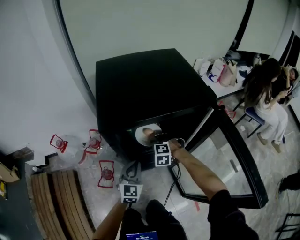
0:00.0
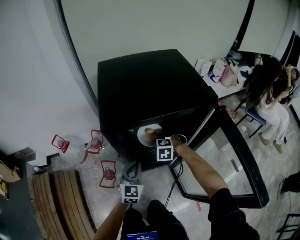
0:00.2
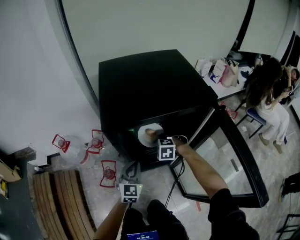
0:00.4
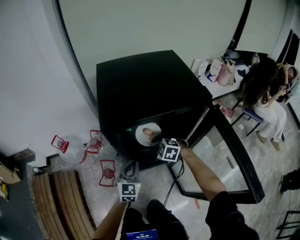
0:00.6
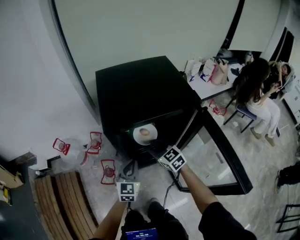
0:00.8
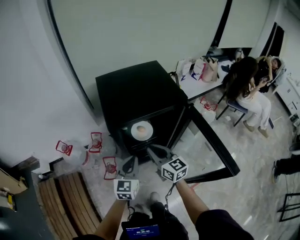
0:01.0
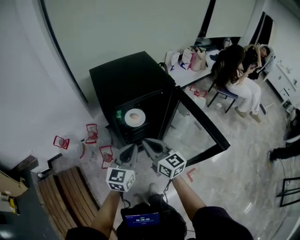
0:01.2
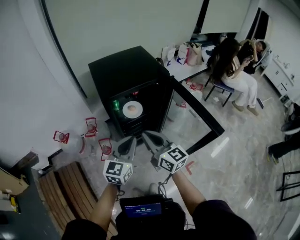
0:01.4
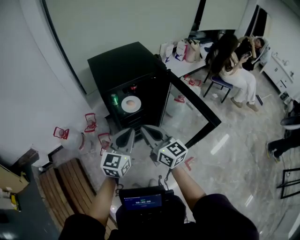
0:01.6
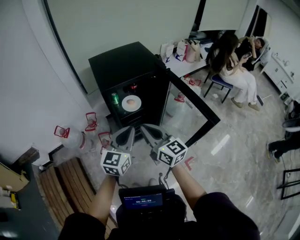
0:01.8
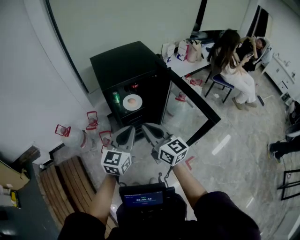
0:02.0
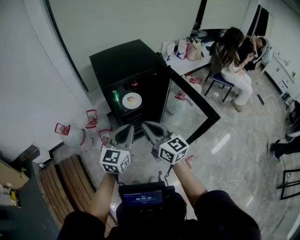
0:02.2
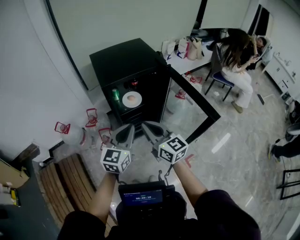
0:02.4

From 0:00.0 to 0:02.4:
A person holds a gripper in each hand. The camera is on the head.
From 0:00.0 to 0:01.2: Both grippers travel together upward and backward, approximately 35 cm. The right gripper points its fingers approximately 60 degrees further upward. The left gripper swivels approximately 20 degrees.
From 0:01.2 to 0:02.4: Both grippers move backward, about 10 cm.

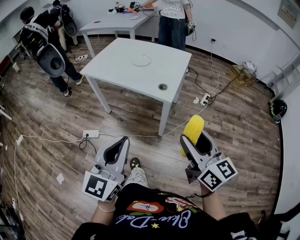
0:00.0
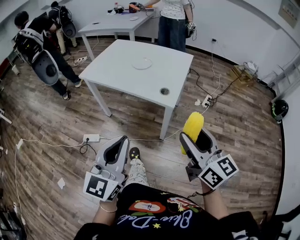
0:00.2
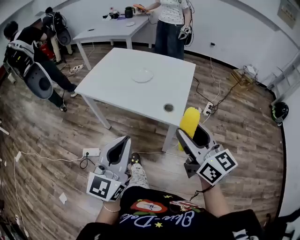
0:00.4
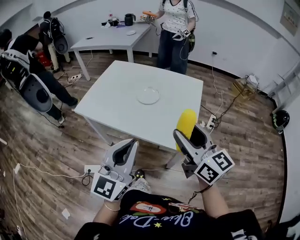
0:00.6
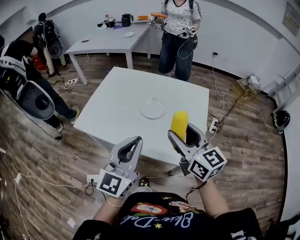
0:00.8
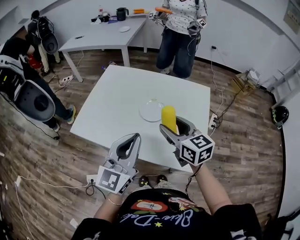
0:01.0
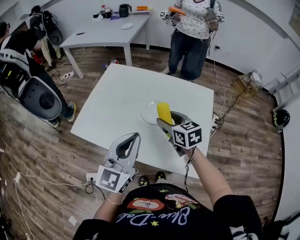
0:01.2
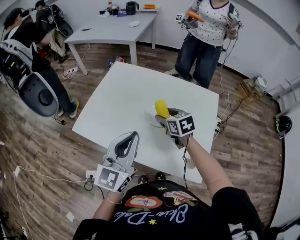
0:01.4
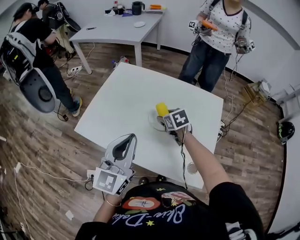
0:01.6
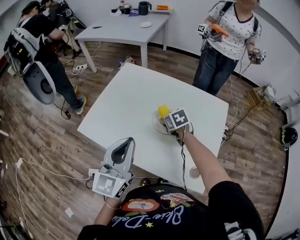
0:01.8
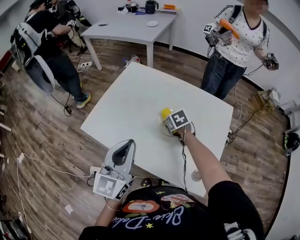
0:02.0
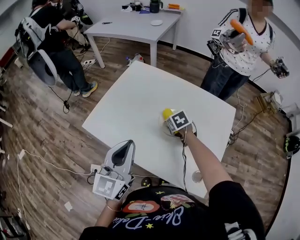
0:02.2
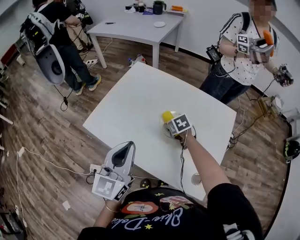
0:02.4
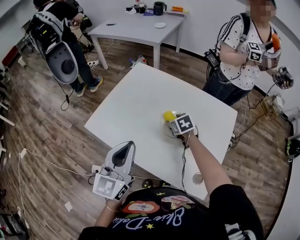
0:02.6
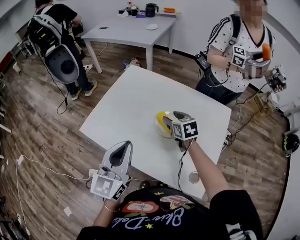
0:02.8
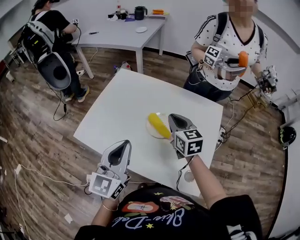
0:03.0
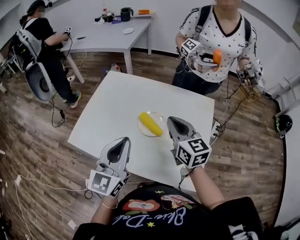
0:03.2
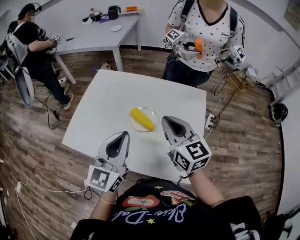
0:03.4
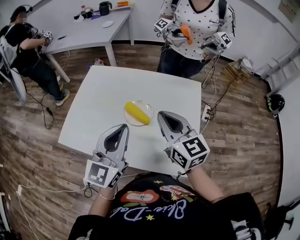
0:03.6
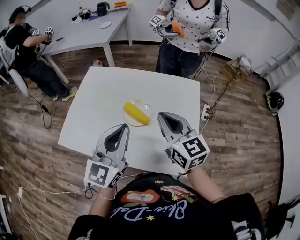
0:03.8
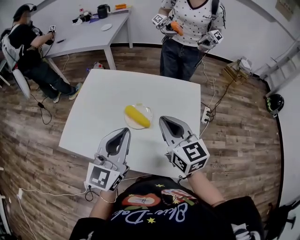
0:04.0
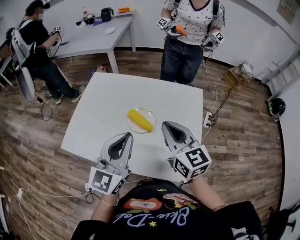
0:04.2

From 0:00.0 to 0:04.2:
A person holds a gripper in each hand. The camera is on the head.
From 0:00.0 to 0:01.4: The pair of grippers is taken forward, about 60 cm. The right gripper tilts its fingers roughly 40 degrees downward.
From 0:01.4 to 0:02.8: The right gripper is displaced forward by approximately 5 cm, and goes downward and returns, about 10 cm each way, while the left gripper heads to the left, covering roughly 5 cm.
From 0:02.8 to 0:04.2: The left gripper goes about 10 cm to the right. The right gripper shifts some 25 cm upward, backward and to the right, swivels some 30 degrees, and closes.

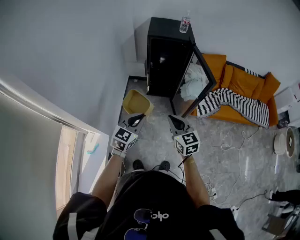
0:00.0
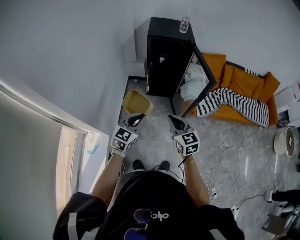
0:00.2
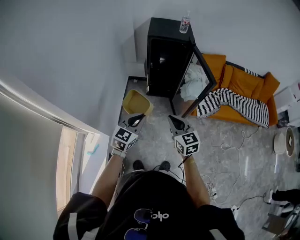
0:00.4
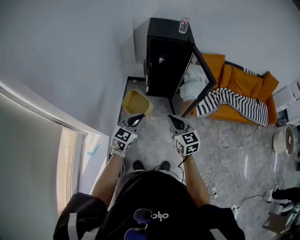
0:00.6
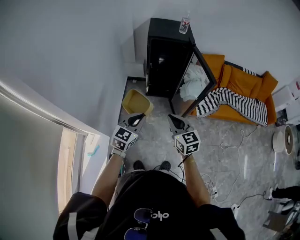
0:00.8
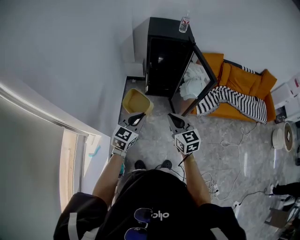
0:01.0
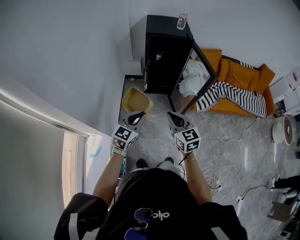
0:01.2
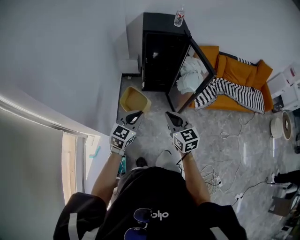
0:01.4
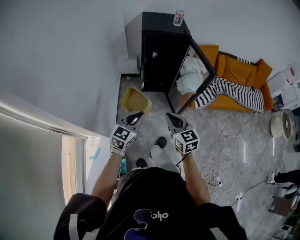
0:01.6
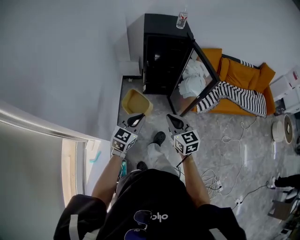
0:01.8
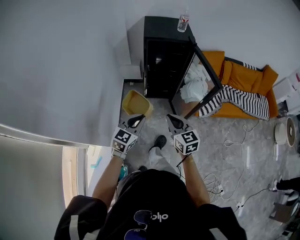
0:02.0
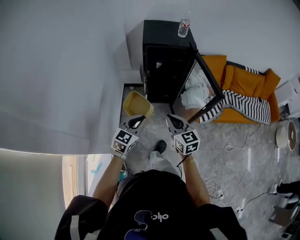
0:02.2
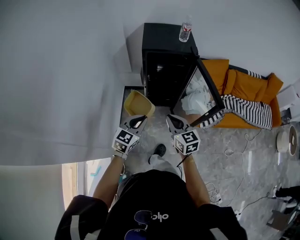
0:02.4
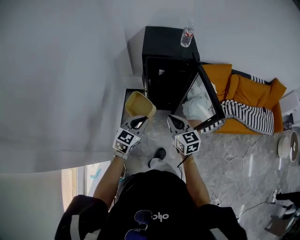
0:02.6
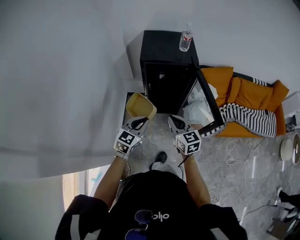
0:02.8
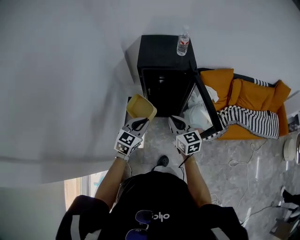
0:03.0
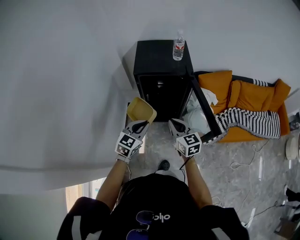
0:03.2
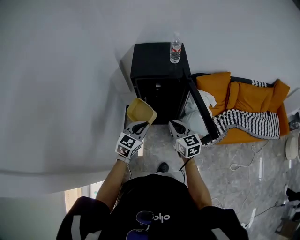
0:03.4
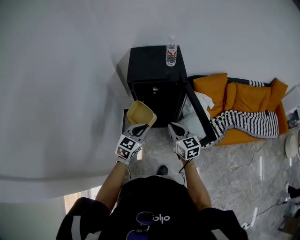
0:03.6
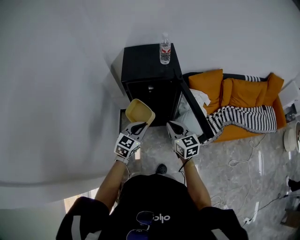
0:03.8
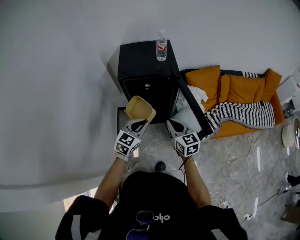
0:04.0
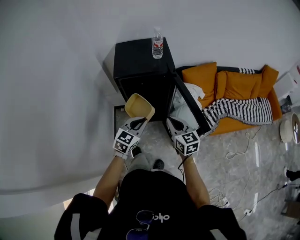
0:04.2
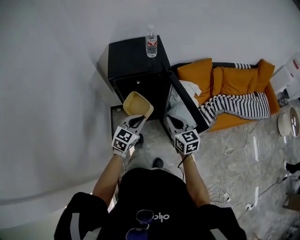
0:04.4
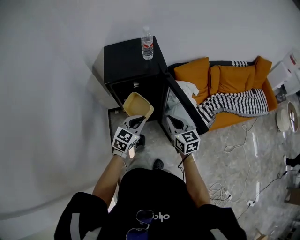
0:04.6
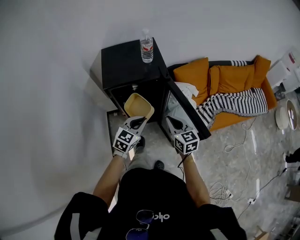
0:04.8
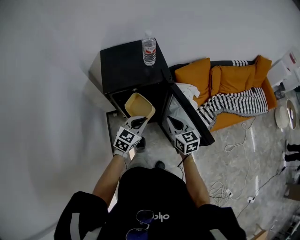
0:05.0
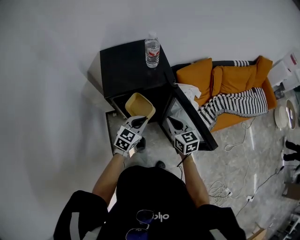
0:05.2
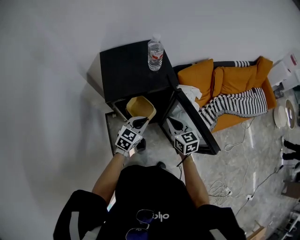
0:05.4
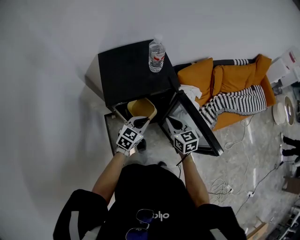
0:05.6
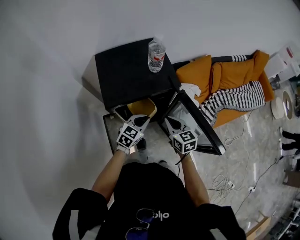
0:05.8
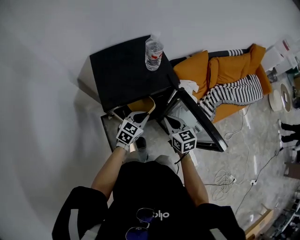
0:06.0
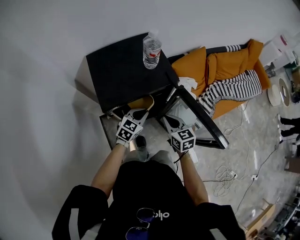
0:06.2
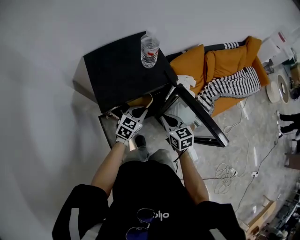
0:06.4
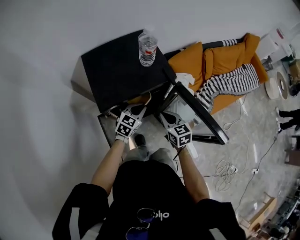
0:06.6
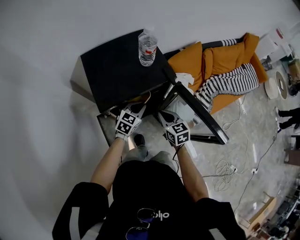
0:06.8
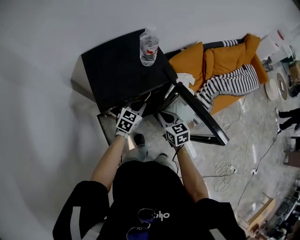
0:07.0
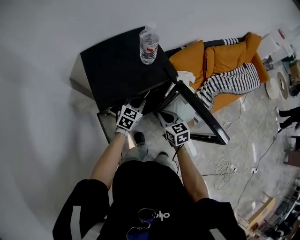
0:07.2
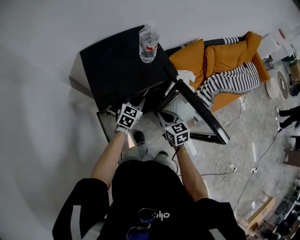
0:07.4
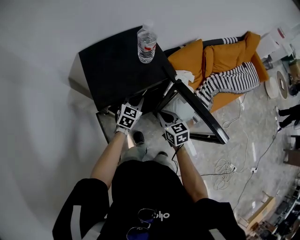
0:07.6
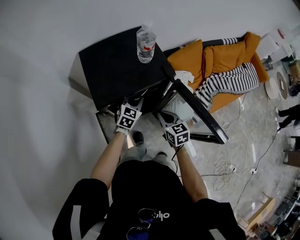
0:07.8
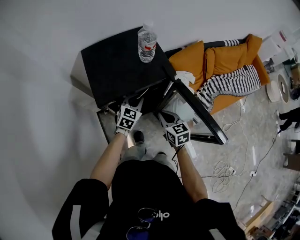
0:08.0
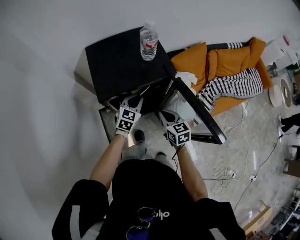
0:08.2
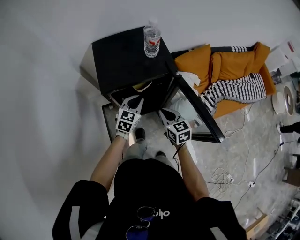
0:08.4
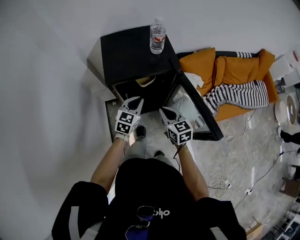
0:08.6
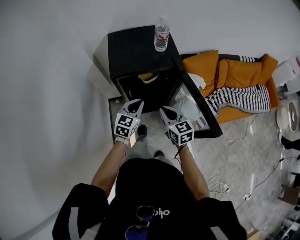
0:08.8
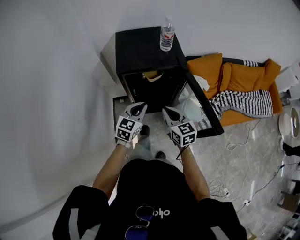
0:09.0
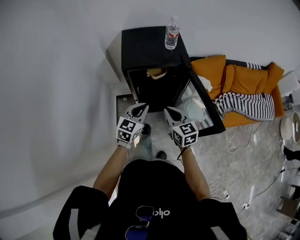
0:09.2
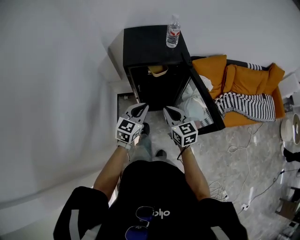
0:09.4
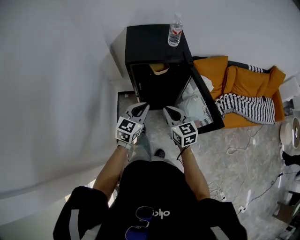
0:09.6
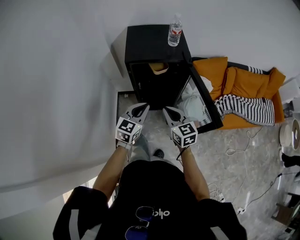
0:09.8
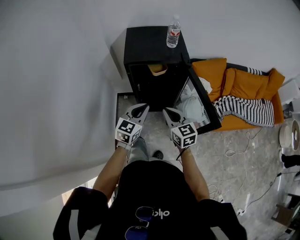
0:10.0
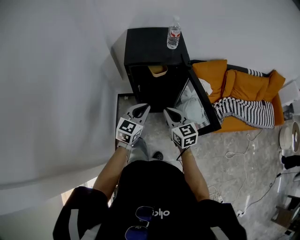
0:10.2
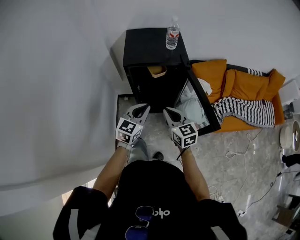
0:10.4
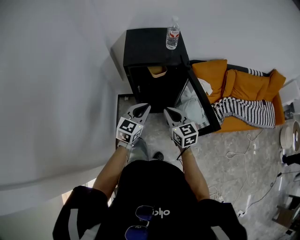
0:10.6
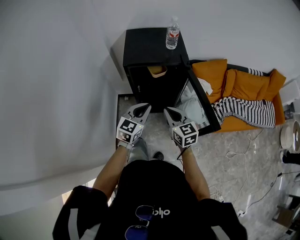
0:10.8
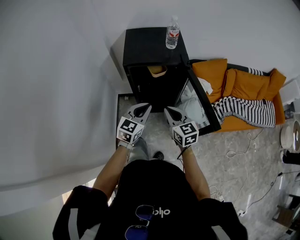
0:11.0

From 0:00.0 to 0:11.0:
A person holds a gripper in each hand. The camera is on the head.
From 0:00.0 to 0:01.6: The two grippers go about 5 cm to the left.
From 0:01.6 to 0:03.2: Both grippers move forward, some 35 cm.
From 0:03.2 to 0:04.8: The two grippers go roughly 15 cm forward and to the right.
From 0:04.8 to 0:06.2: The right gripper is displaced forward, to the left and downward by roughly 15 cm, while the left gripper is displaced forward, downward and to the left by roughly 20 cm.
From 0:06.2 to 0:07.8: The left gripper is displaced forward by approximately 5 cm.
From 0:07.8 to 0:09.4: Both grippers move backward and upward, about 25 cm. The left gripper turns by approximately 20 degrees, while the right gripper swivels about 20 degrees.
From 0:09.4 to 0:11.0: The grippers make only small movements.

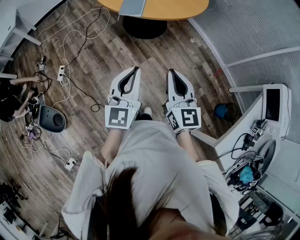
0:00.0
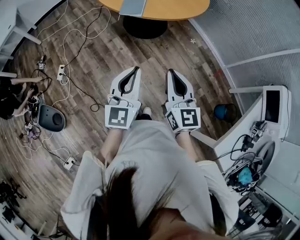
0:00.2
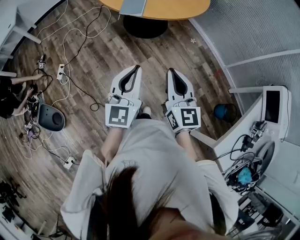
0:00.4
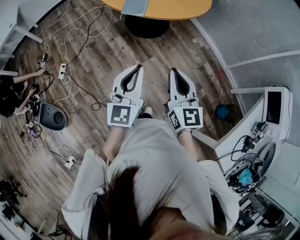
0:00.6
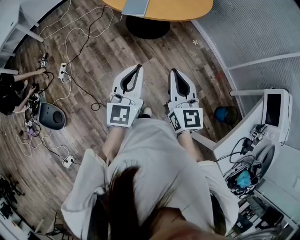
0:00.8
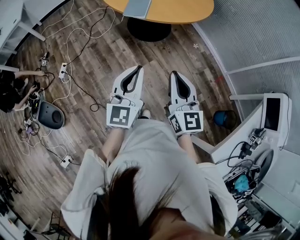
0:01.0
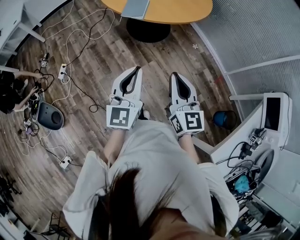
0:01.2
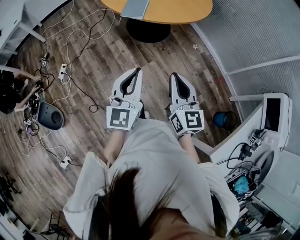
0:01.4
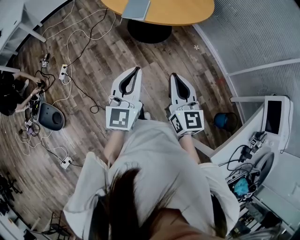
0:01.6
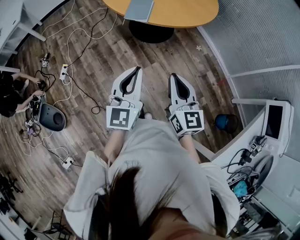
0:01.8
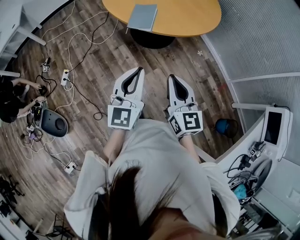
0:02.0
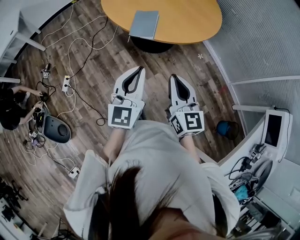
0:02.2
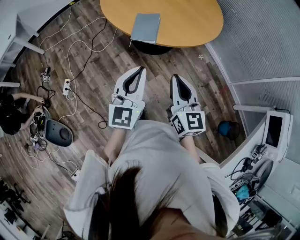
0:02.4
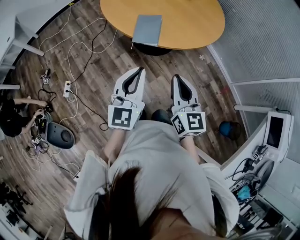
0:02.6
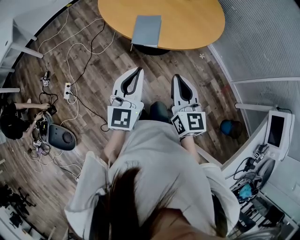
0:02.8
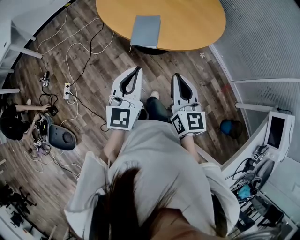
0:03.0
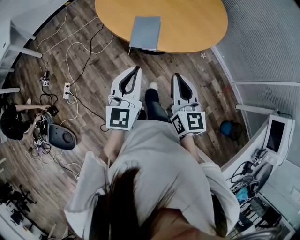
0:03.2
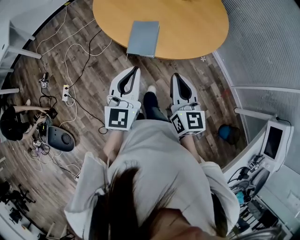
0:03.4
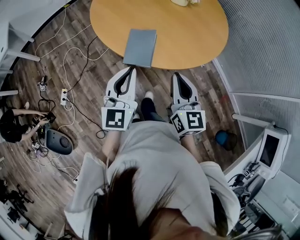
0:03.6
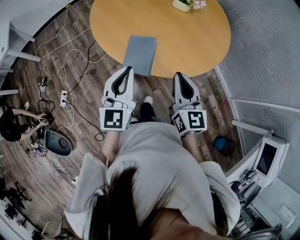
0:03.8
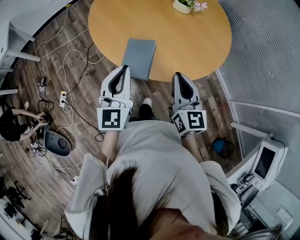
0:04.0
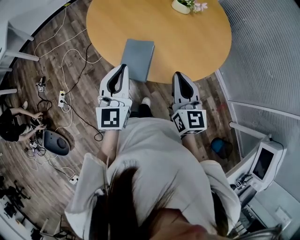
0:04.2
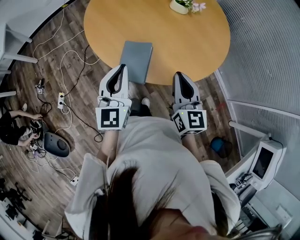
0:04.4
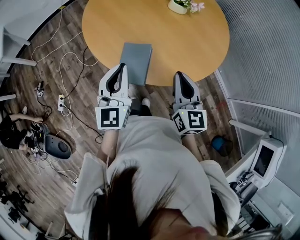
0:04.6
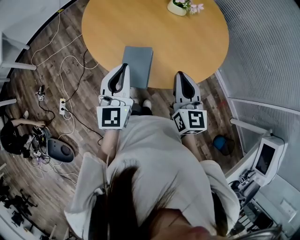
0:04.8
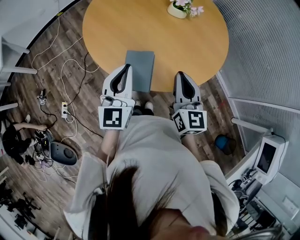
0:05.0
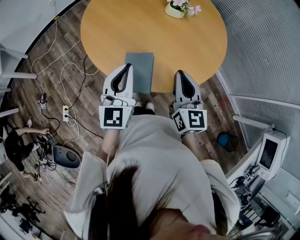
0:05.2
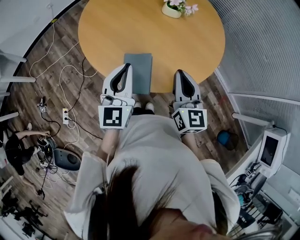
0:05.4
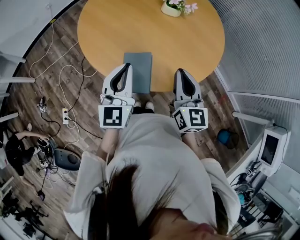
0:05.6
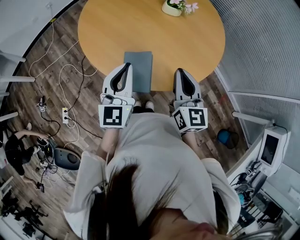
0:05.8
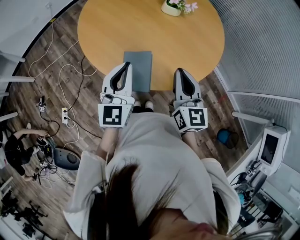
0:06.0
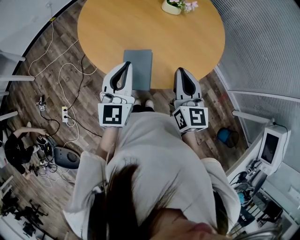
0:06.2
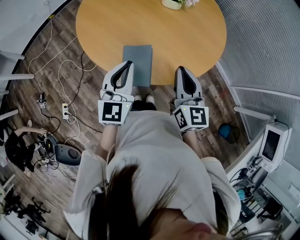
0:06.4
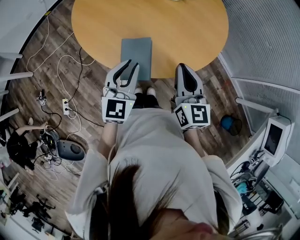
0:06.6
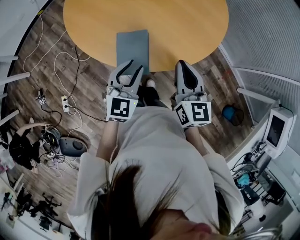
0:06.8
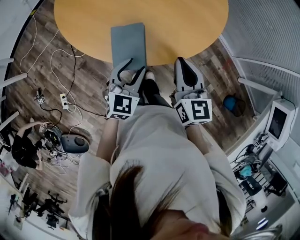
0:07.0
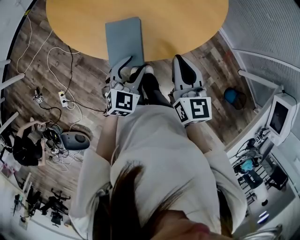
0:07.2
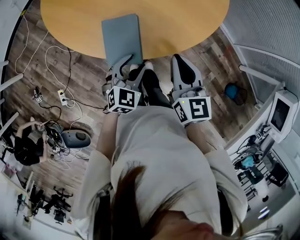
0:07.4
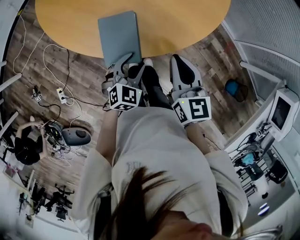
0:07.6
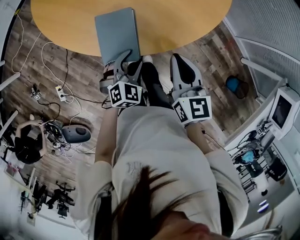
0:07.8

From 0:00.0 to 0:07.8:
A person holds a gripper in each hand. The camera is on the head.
From 0:00.0 to 0:01.6: The grippers make only small movements.
From 0:01.6 to 0:03.2: Both grippers travel together forward, some 25 cm.
From 0:03.2 to 0:04.6: The grippers both shift forward by roughly 20 cm.
From 0:04.6 to 0:06.2: The grippers make only small movements.
From 0:06.2 to 0:07.8: The left gripper travels downward by about 25 cm, points its fingers about 40 degrees further downward, and opens. The right gripper heads downward, covering about 10 cm.
